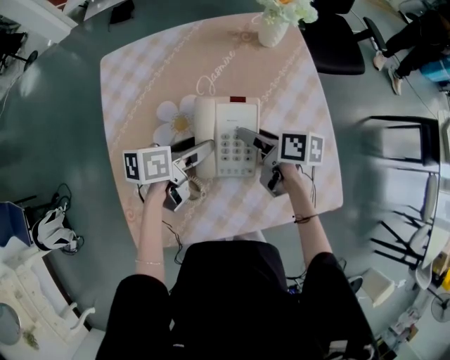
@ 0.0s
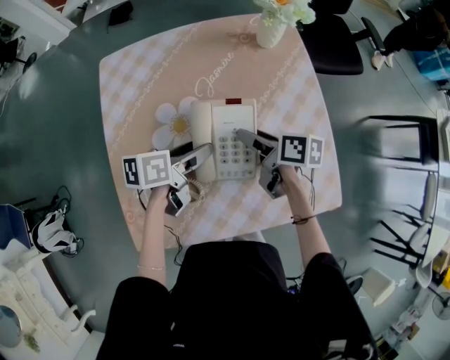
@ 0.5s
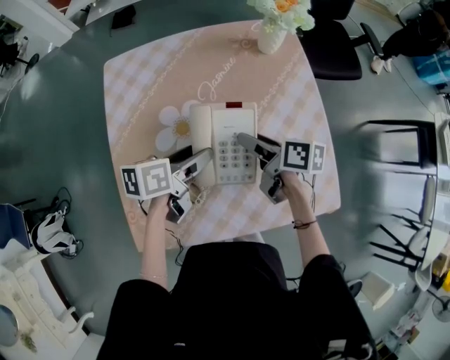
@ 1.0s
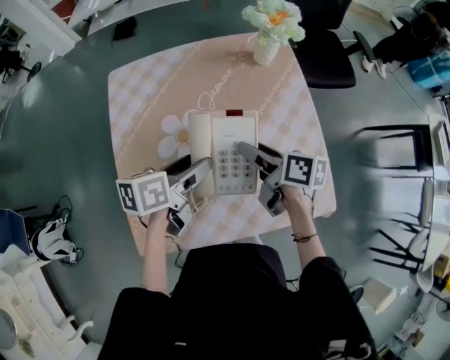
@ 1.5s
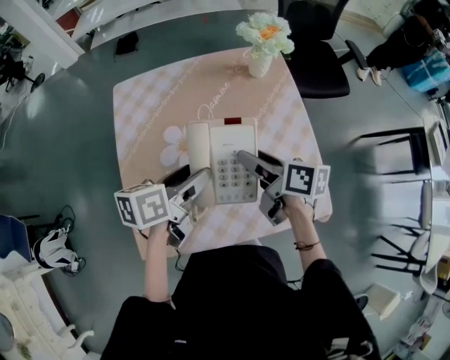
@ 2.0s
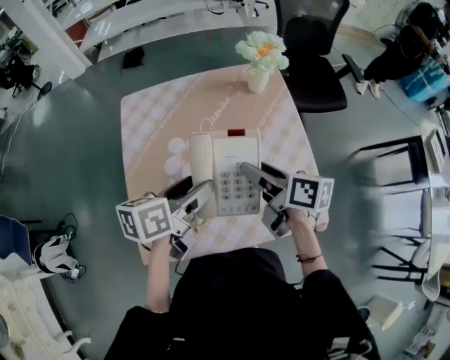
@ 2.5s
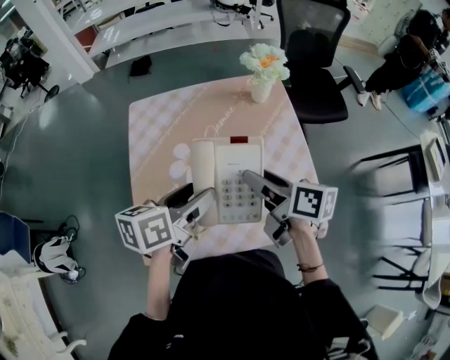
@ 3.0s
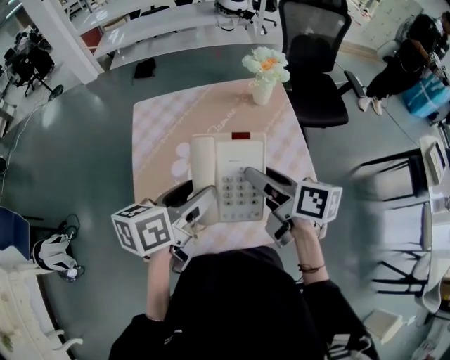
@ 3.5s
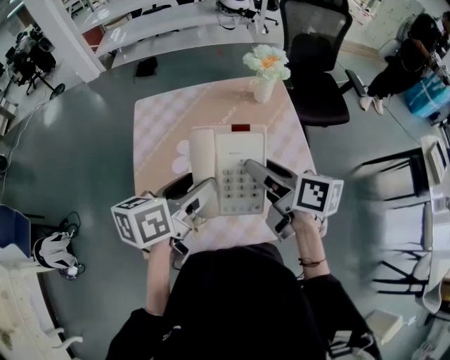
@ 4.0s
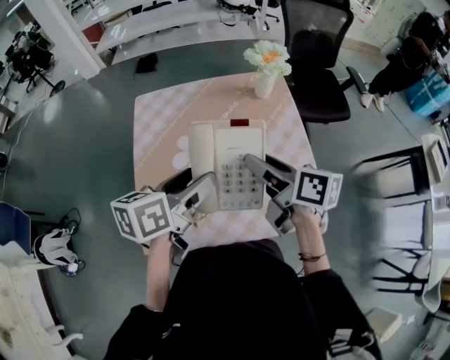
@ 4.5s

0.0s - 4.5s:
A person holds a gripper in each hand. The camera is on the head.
0.0s - 2.0s: The grippers both shift upward by about 10 cm.
2.0s - 4.5s: Both grippers travel together upward, roughly 10 cm.

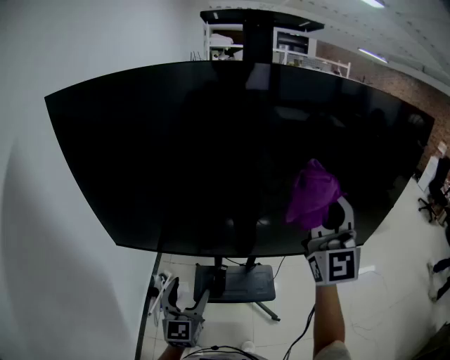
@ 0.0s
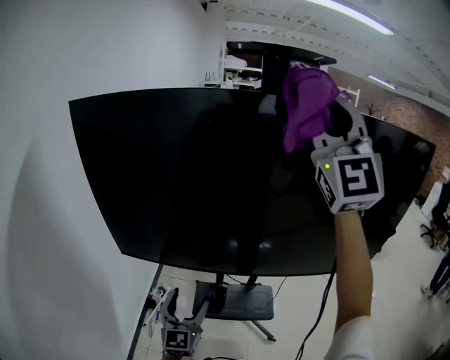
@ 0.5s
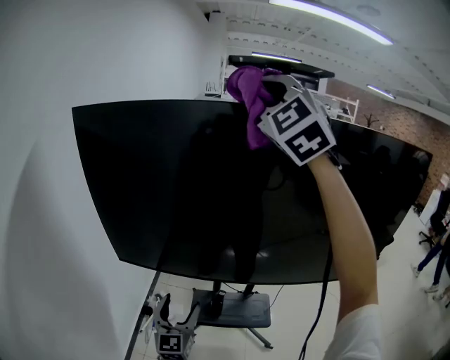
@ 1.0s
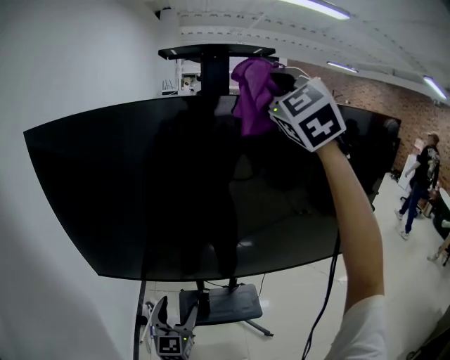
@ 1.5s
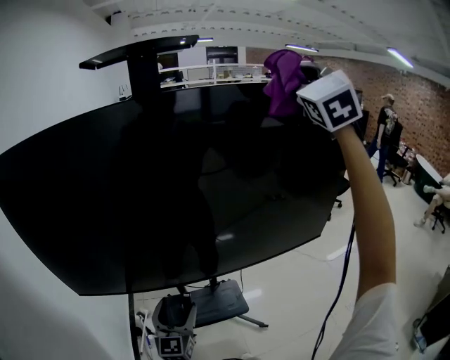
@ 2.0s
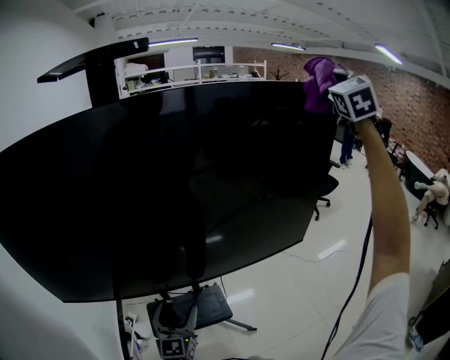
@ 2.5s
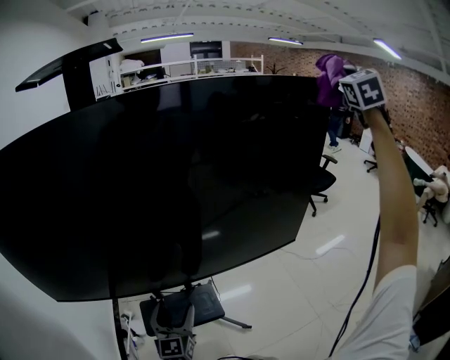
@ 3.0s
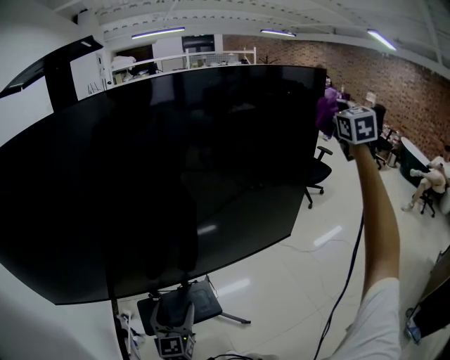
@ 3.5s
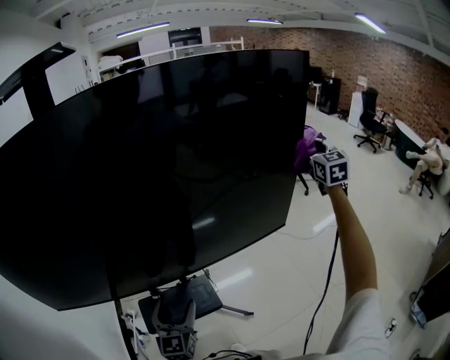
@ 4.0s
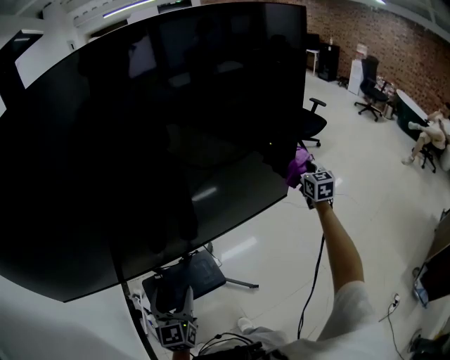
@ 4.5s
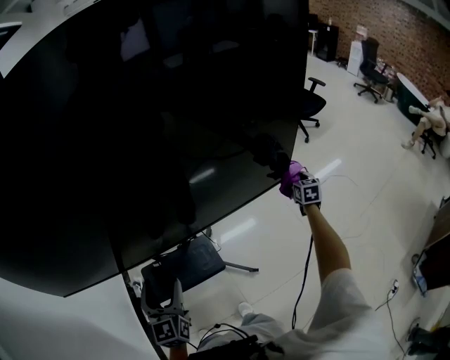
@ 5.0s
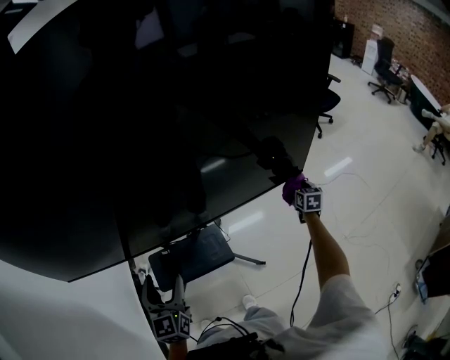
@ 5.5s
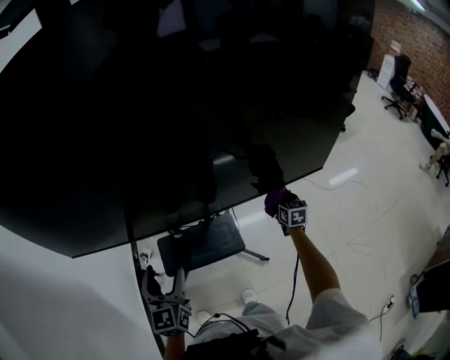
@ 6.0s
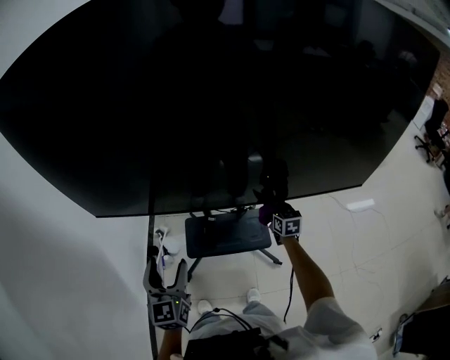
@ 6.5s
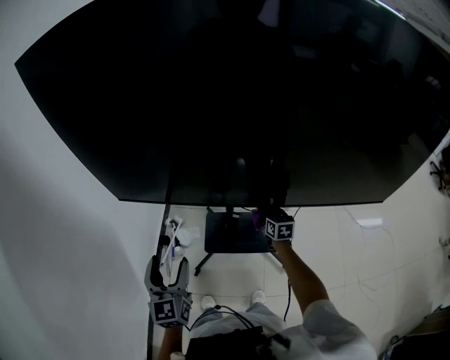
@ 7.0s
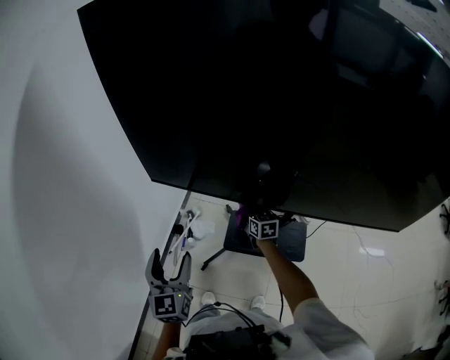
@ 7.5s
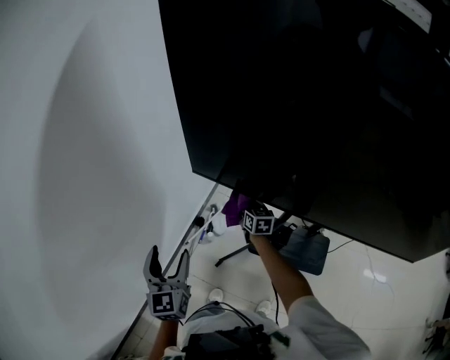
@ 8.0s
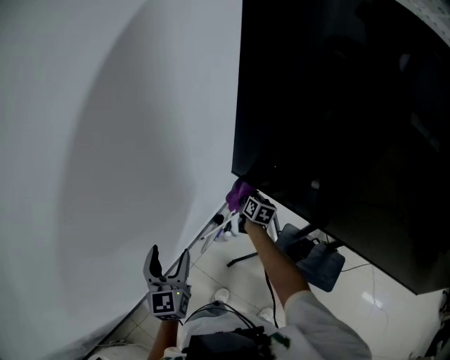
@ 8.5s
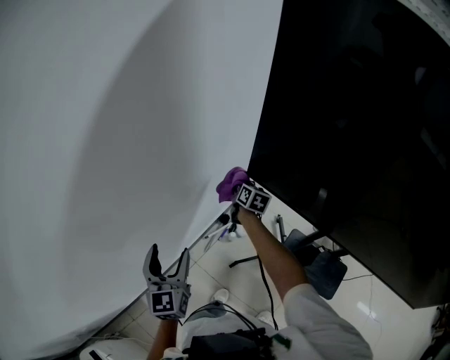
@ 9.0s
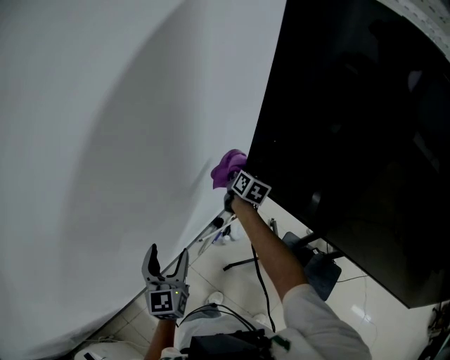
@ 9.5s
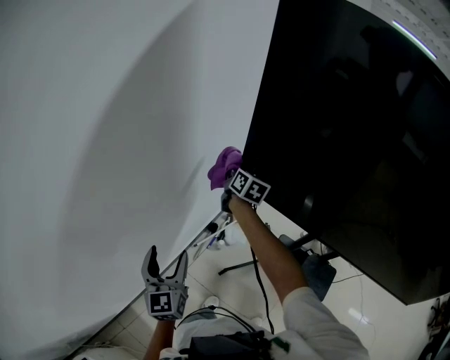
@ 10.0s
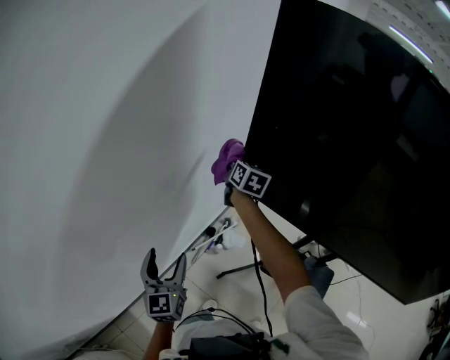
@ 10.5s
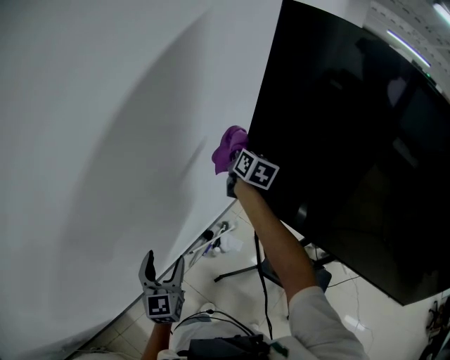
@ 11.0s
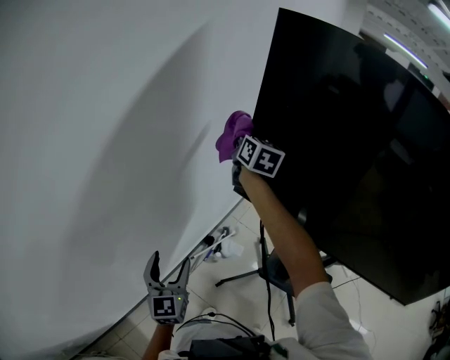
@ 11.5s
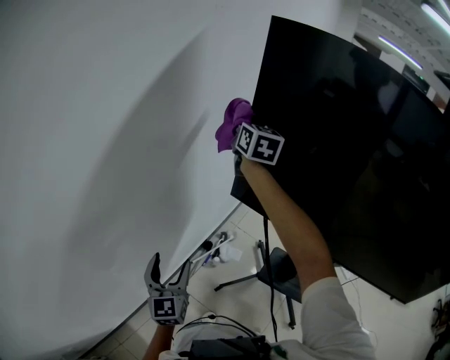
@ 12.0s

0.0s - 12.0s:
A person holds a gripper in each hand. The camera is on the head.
0.0s - 2.0s: The right gripper shifts by roughly 35 cm, and swivels roughly 40 degrees, while the left gripper moves roughly 10 cm.
2.0s - 4.0s: The right gripper heads to the right and downward, covering approximately 50 cm, and swivels some 30 degrees, while the left gripper travels to the right and forward by some 15 cm.
4.0s - 6.0s: The right gripper travels downward and to the left by approximately 50 cm, and changes its angle by some 40 degrees. The left gripper moves to the left, about 15 cm.
6.0s - 8.0s: The pair of grippers is taken some 60 cm. The right gripper rotates some 40 degrees. Meanwhile the left gripper rotates roughly 40 degrees.
8.0s - 10.0s: The left gripper moves to the left, approximately 10 cm. The right gripper heads to the left, upward and forward, covering about 30 cm.
10.0s - 12.0s: The right gripper heads upward, covering approximately 25 cm, and rotates roughly 30 degrees.

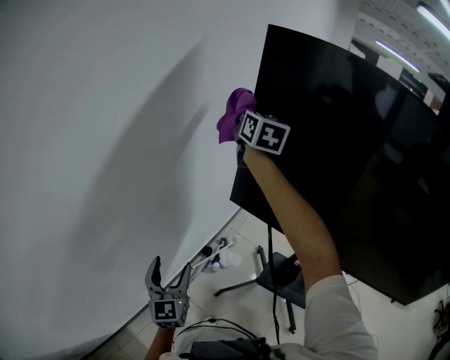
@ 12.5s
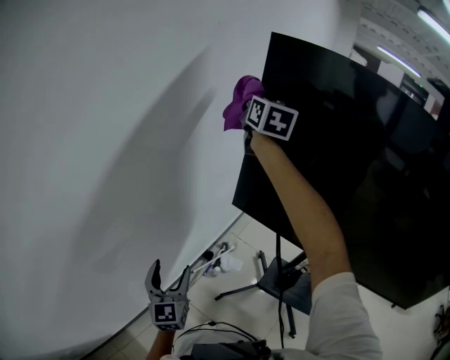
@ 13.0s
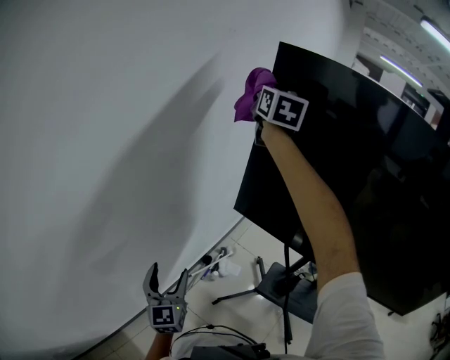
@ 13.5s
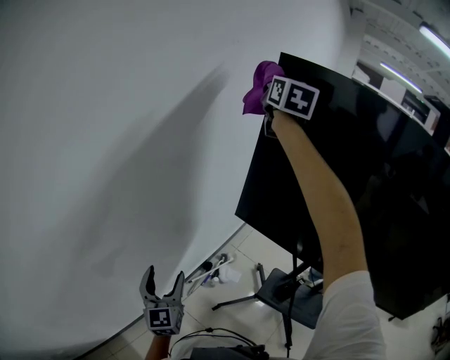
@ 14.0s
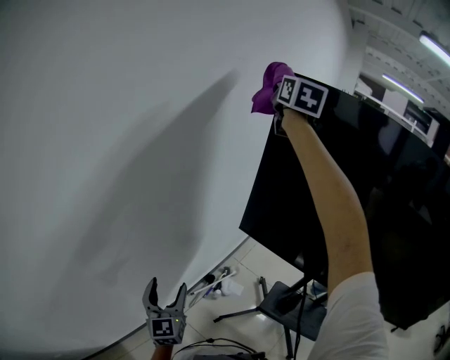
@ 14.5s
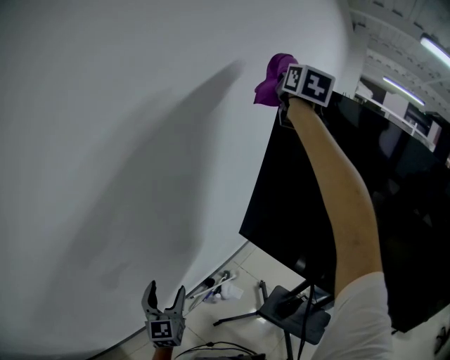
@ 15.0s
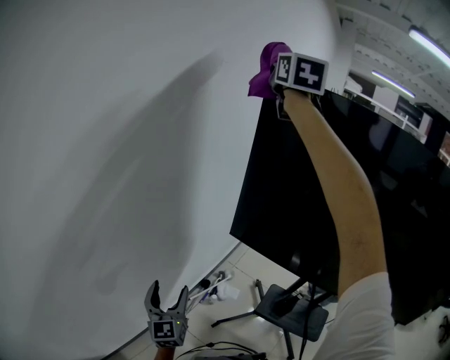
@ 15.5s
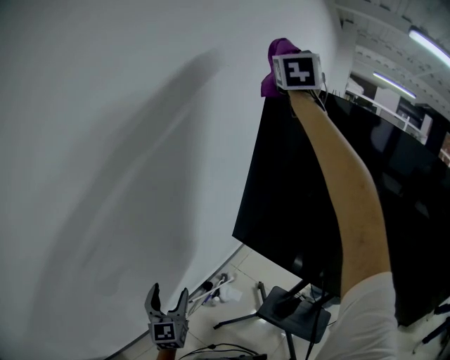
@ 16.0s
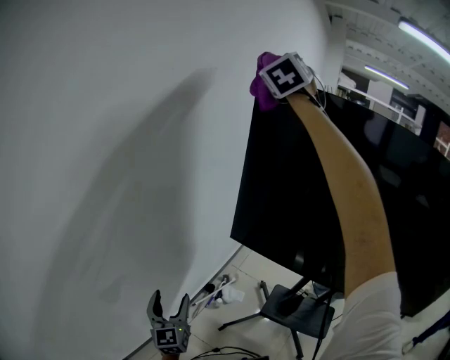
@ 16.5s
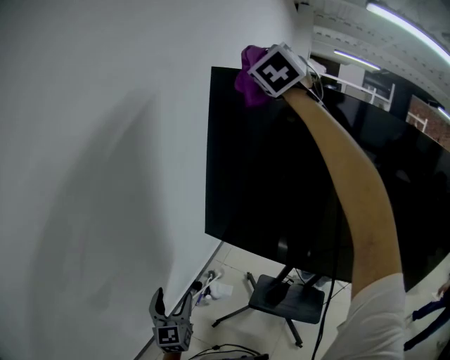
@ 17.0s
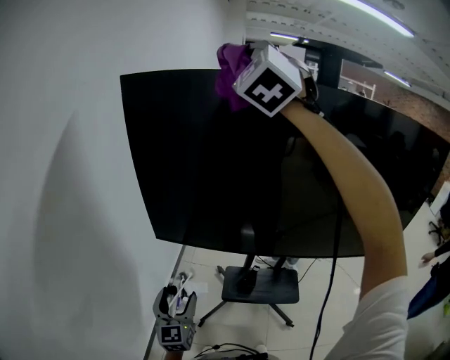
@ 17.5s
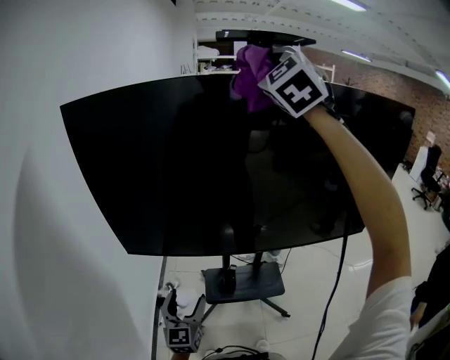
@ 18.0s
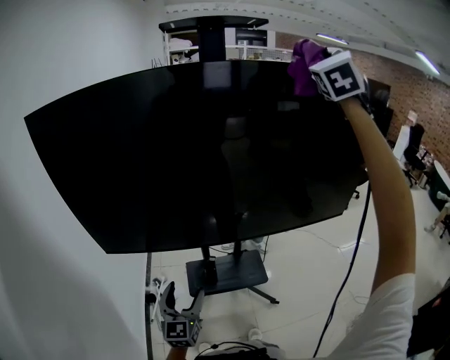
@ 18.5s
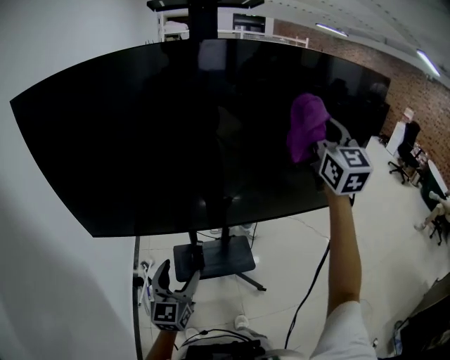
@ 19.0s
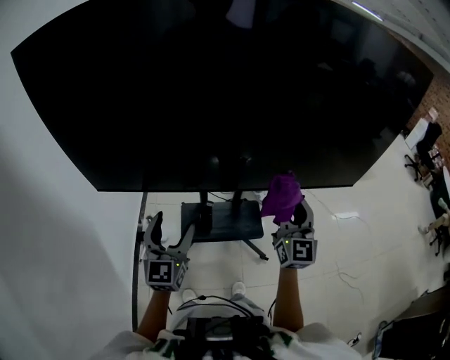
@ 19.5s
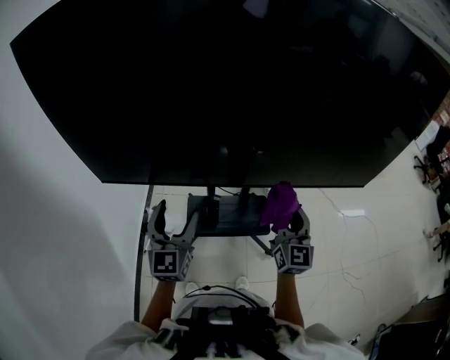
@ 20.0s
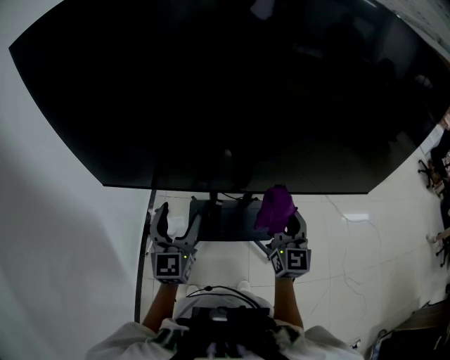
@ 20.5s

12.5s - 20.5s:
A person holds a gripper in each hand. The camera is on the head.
12.5s - 14.5s: The left gripper ends up some 5 cm from where it was, while the right gripper goes approximately 20 cm upward.
14.5s - 16.5s: The right gripper goes some 5 cm upward, and rolls counterclockwise, seen from behind, by roughly 50 degrees.
16.5s - 18.5s: Both grippers are carried roughly 60 cm. The left gripper turns by about 50 degrees; the right gripper swivels about 50 degrees.
18.5s - 20.5s: The right gripper is displaced downward by roughly 50 cm, and twists approximately 50 degrees clockwise, seen from behind; the left gripper shifts about 10 cm forward and upward.

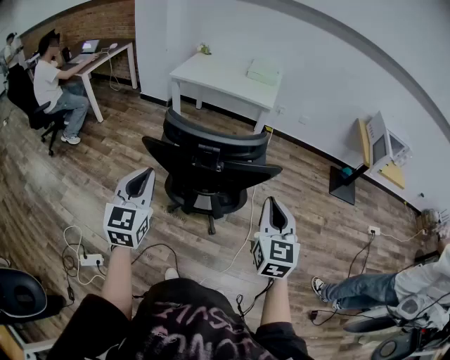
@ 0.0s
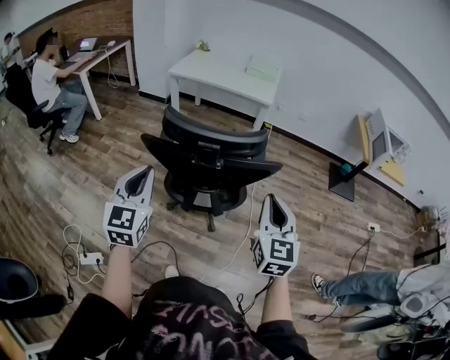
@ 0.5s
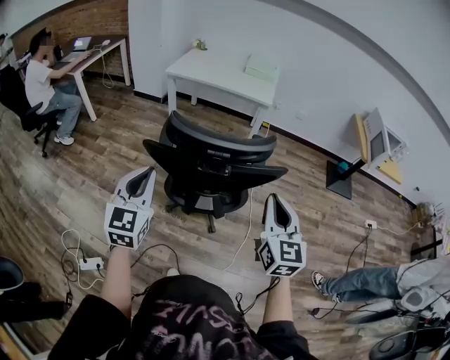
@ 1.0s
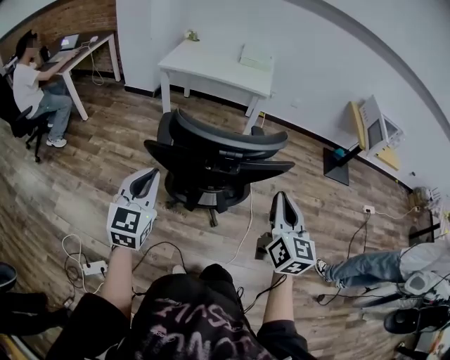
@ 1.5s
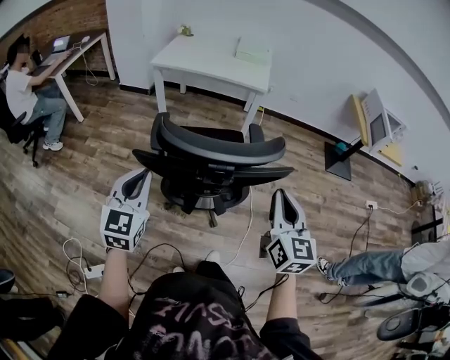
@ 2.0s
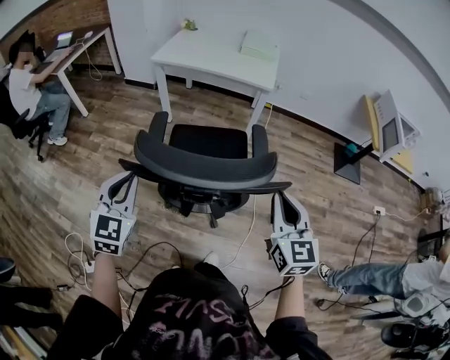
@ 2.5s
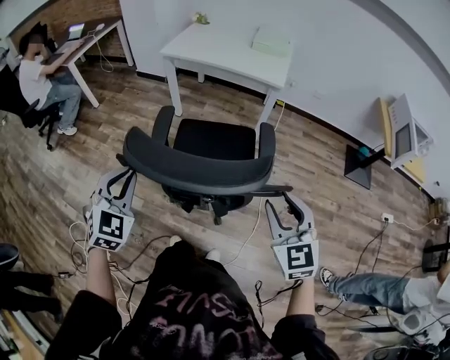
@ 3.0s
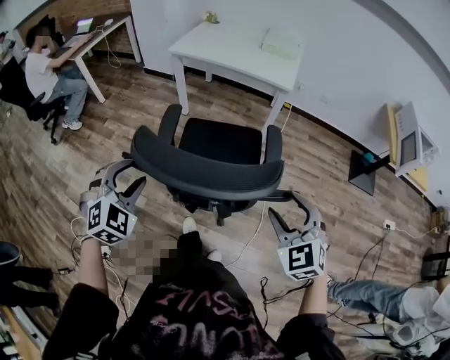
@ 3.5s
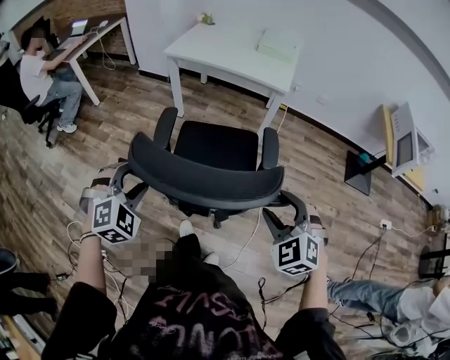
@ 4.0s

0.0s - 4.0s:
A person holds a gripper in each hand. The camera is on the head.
0.0s - 2.0s: Both grippers travel together forward, some 10 cm.
2.0s - 4.0s: Both grippers travel together forward and downward, about 10 cm. The left gripper rotates around the line of its fingers by some 40 degrees, clockwise from behind, and opens; the right gripper rotates around the line of its fingers by roughly 60 degrees, counterclockwise from behind, and opens up.
